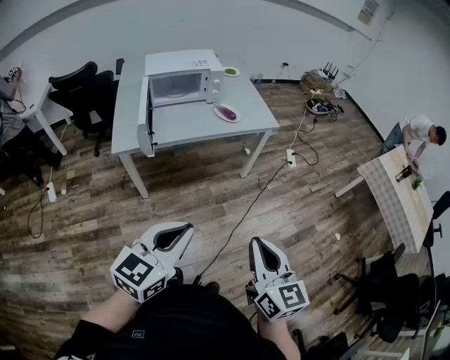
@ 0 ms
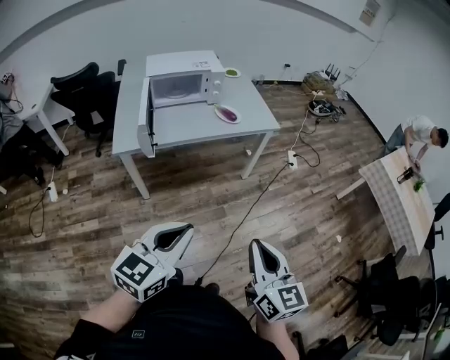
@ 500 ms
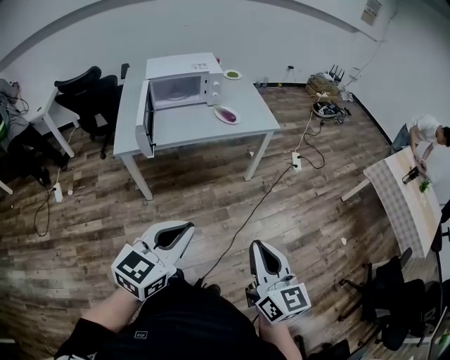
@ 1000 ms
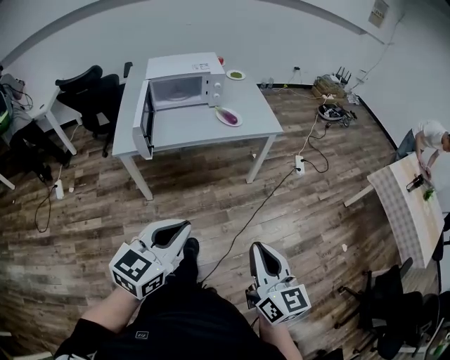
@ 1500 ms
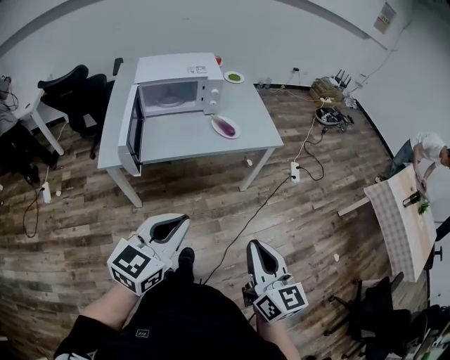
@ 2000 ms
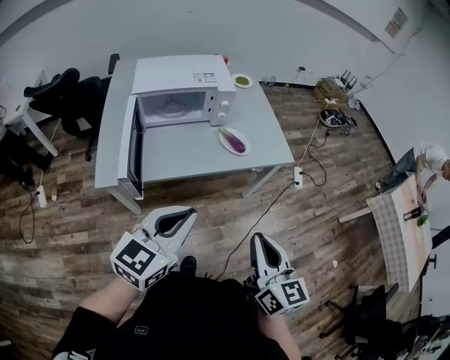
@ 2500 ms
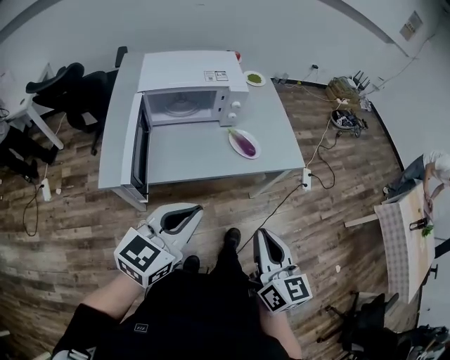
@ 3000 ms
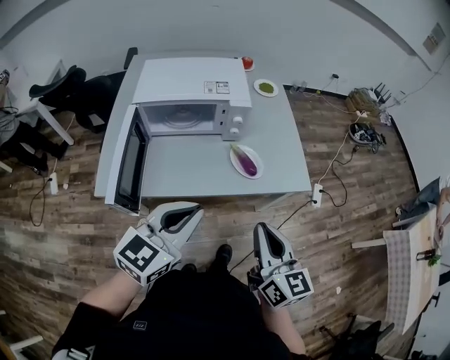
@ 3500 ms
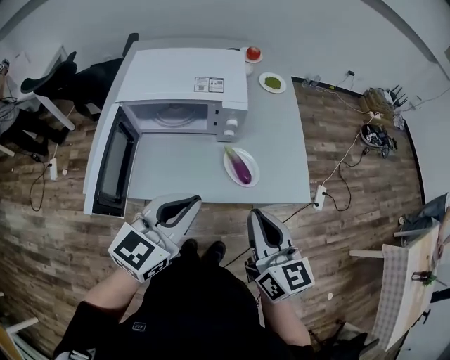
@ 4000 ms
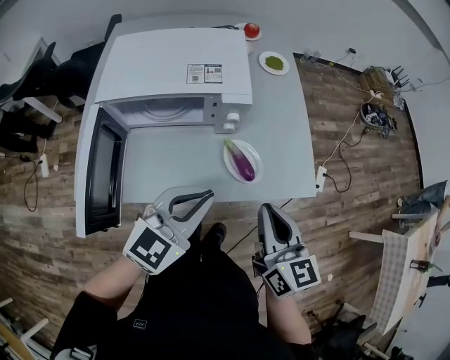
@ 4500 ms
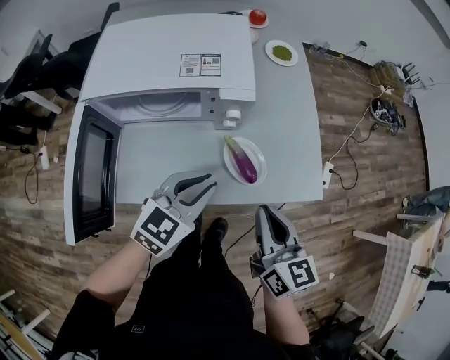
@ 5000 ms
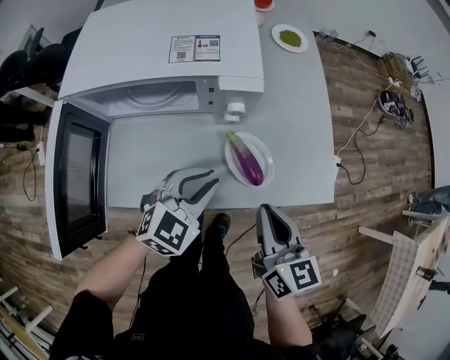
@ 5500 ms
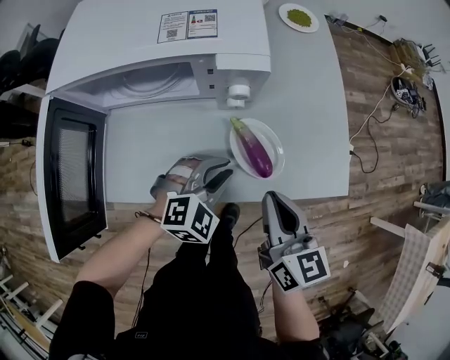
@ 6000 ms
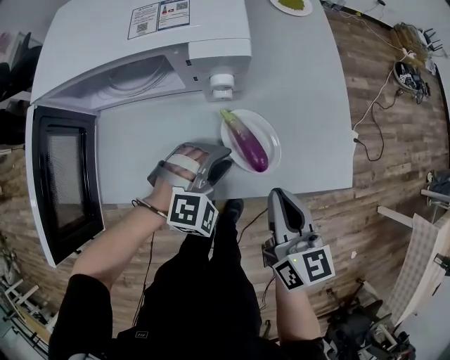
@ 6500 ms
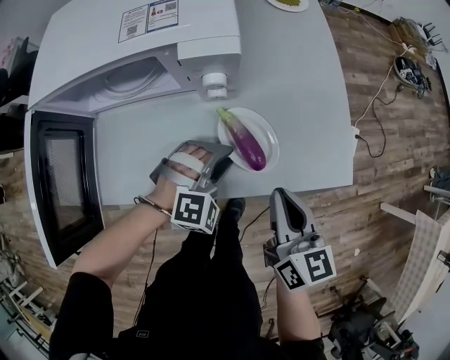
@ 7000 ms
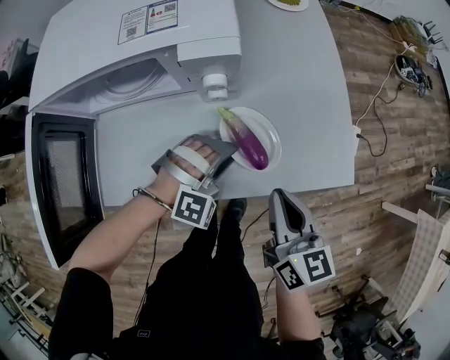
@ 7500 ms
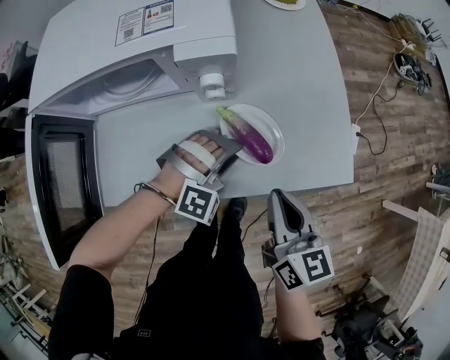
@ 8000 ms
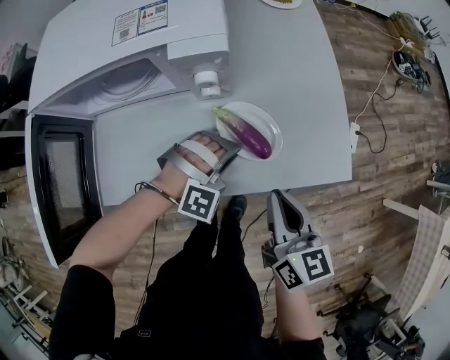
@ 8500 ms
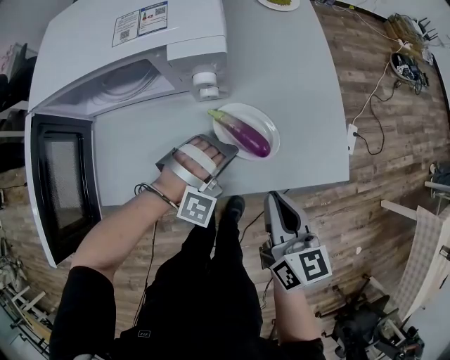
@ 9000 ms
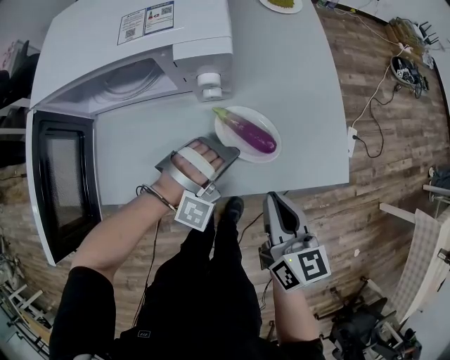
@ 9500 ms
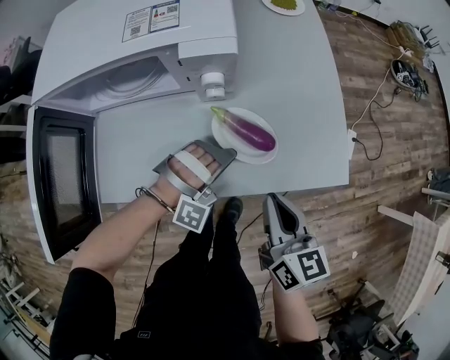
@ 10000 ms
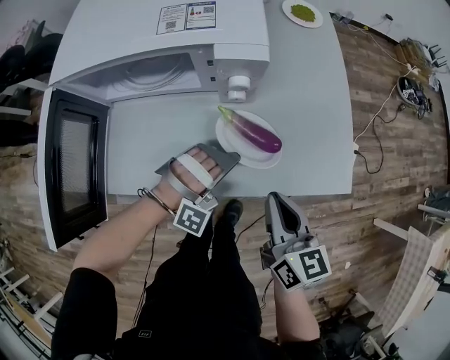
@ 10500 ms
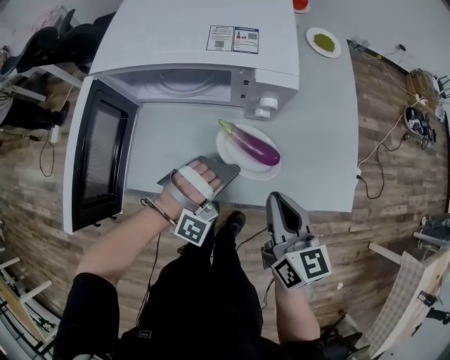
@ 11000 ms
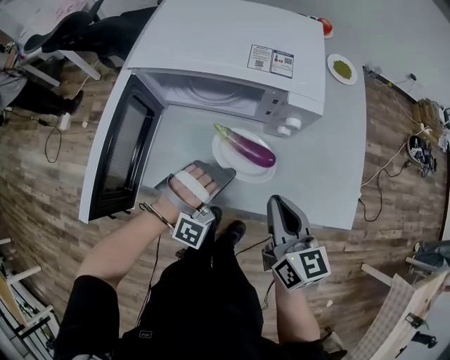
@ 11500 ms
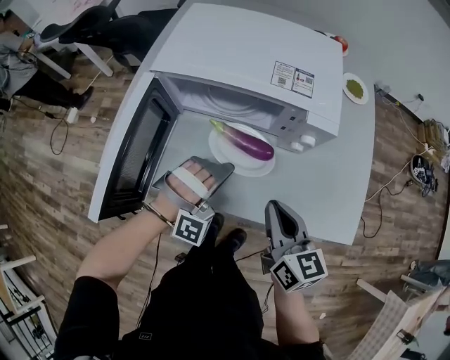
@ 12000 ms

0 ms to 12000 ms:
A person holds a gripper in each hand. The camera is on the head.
0 ms to 2000 ms: The grippers both shift forward by some 15 cm.
2000 ms to 4000 ms: The grippers both shift forward by about 40 cm.
4000 ms to 6000 ms: Both grippers travel together downward and forward, approximately 25 cm. The left gripper tips its fingers downward by about 30 degrees.
6000 ms to 8000 ms: The right gripper shifts by roughly 5 cm. Meanwhile the left gripper moves roughly 5 cm, and changes its angle by roughly 40 degrees.
8000 ms to 10000 ms: The left gripper turns by some 20 degrees, and closes.
10000 ms to 12000 ms: The two grippers go approximately 20 cm to the left and upward. The left gripper rotates some 20 degrees. The right gripper swivels approximately 20 degrees.

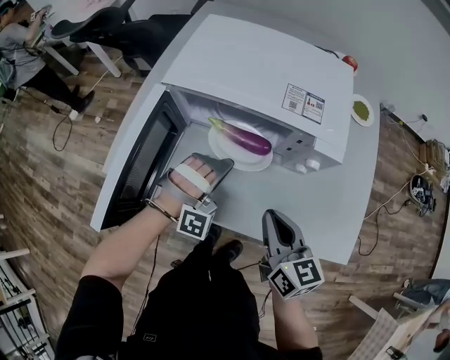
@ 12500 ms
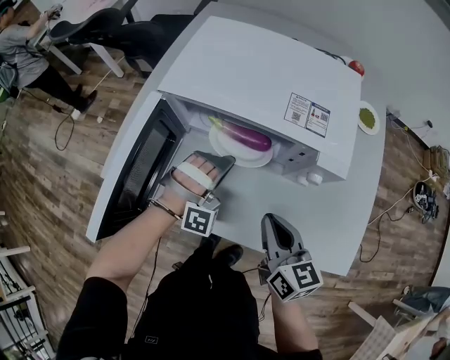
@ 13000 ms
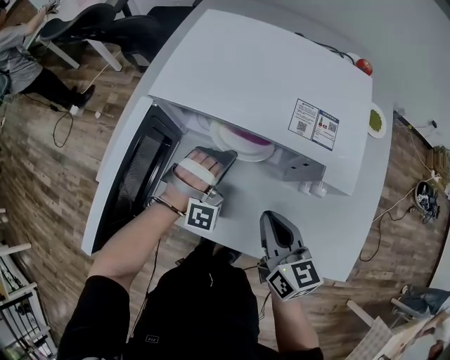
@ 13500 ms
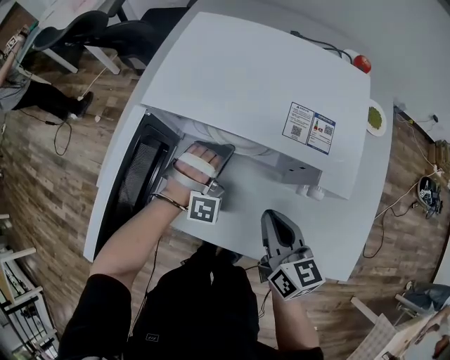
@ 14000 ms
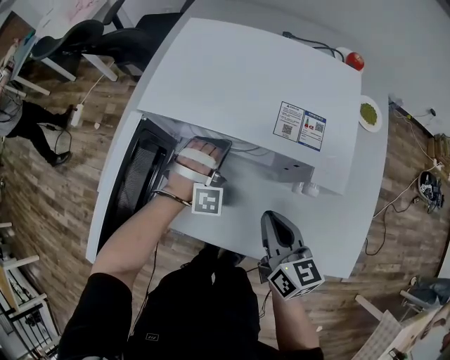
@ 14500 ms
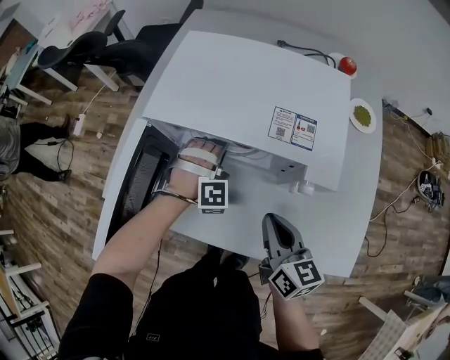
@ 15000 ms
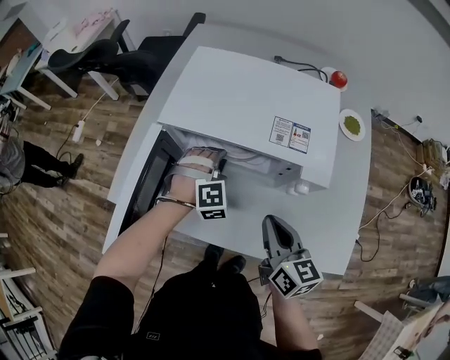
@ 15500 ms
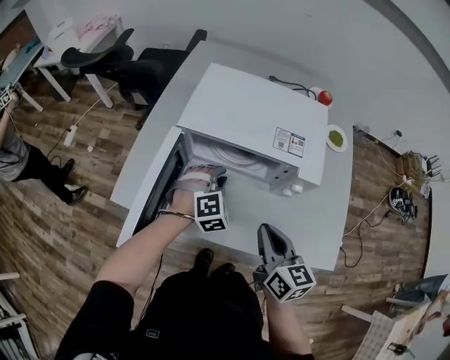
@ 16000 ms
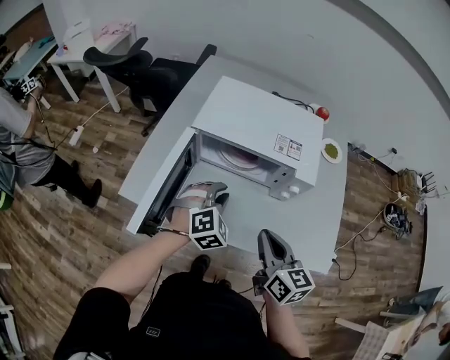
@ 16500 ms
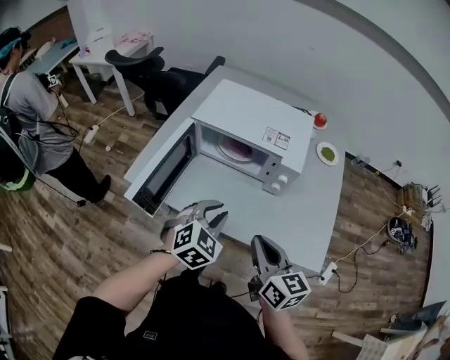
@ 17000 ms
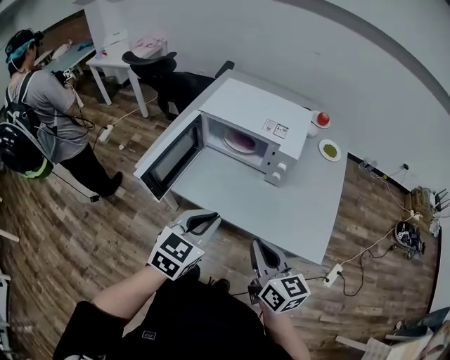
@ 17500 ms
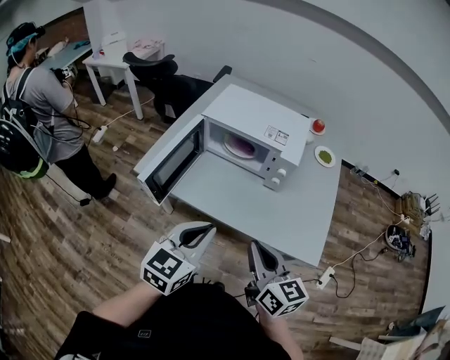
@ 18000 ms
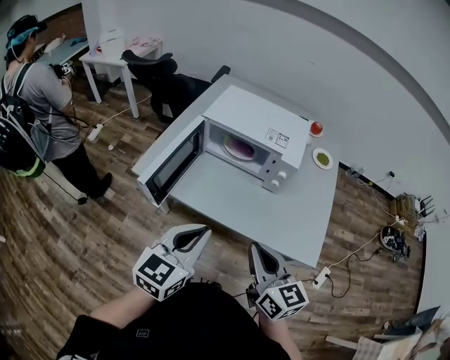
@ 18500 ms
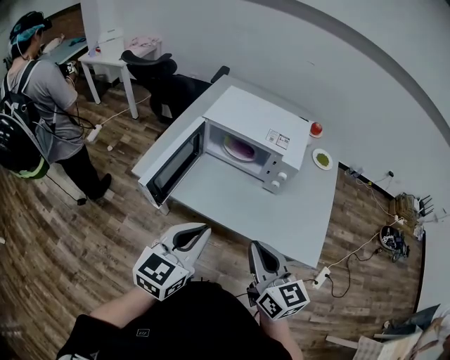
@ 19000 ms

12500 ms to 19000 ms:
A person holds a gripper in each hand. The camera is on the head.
12500 ms to 14500 ms: The right gripper travels forward by roughly 5 cm; the left gripper moves forward, roughly 15 cm.
14500 ms to 17000 ms: Both grippers travel together backward and upward, some 30 cm. The left gripper twists about 60 degrees counterclockwise, seen from behind.
17000 ms to 19000 ms: The right gripper goes approximately 10 cm backward and upward; the left gripper travels backward, upward and to the left by about 20 cm, and turns by some 40 degrees.

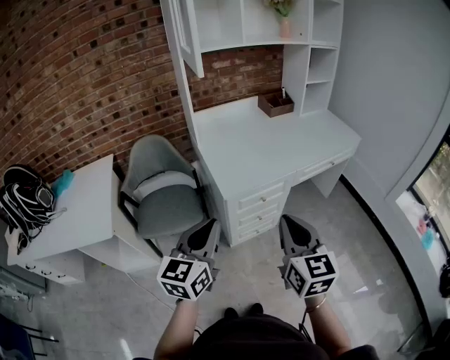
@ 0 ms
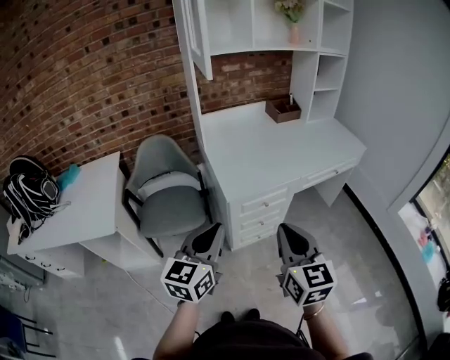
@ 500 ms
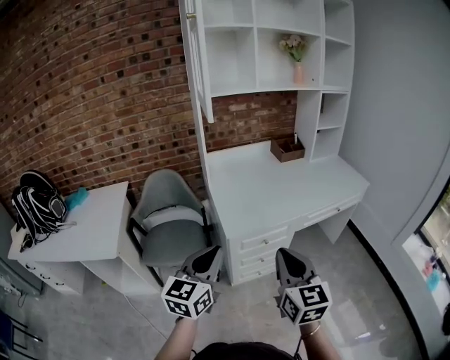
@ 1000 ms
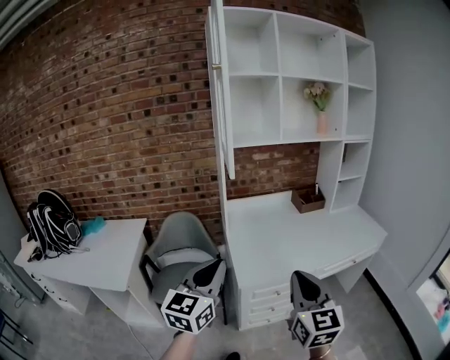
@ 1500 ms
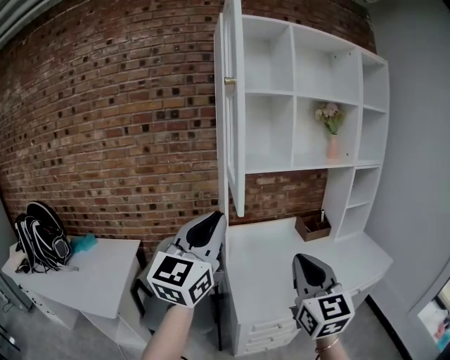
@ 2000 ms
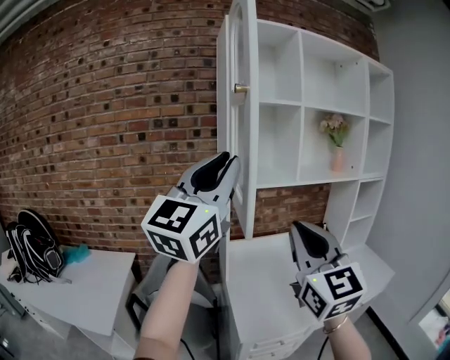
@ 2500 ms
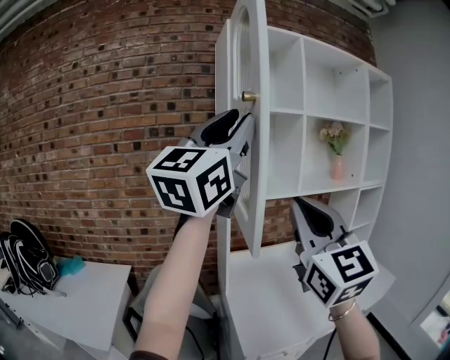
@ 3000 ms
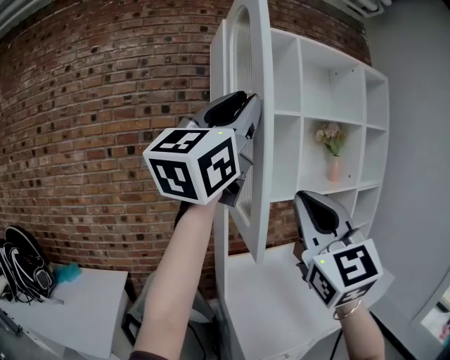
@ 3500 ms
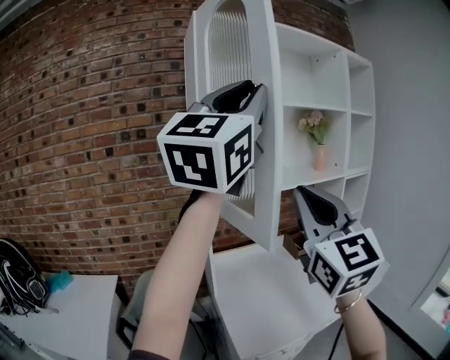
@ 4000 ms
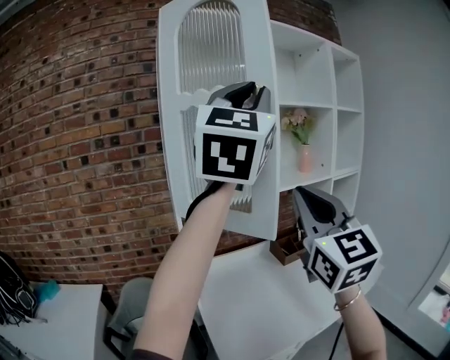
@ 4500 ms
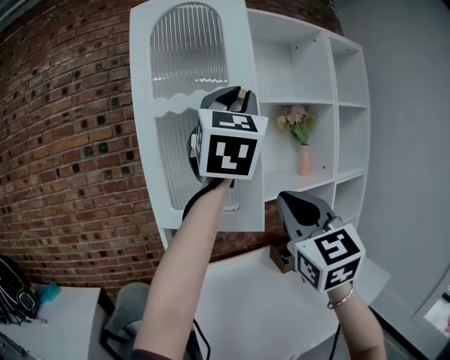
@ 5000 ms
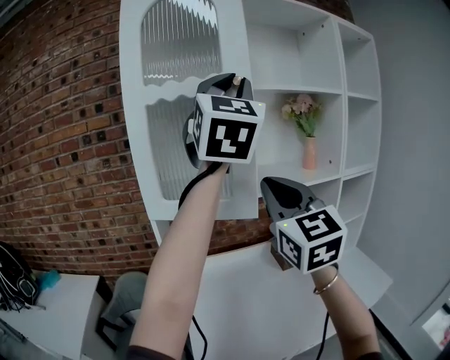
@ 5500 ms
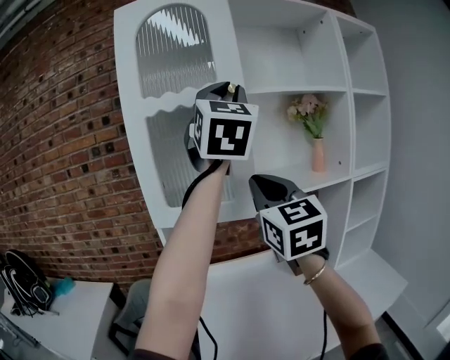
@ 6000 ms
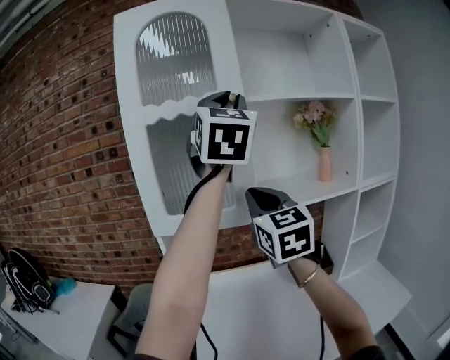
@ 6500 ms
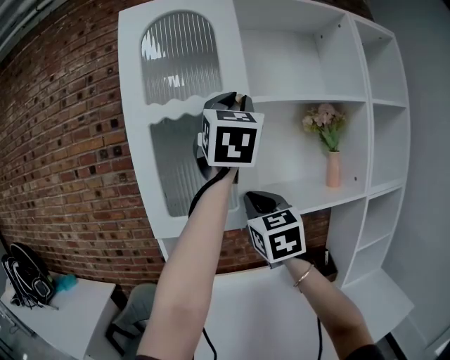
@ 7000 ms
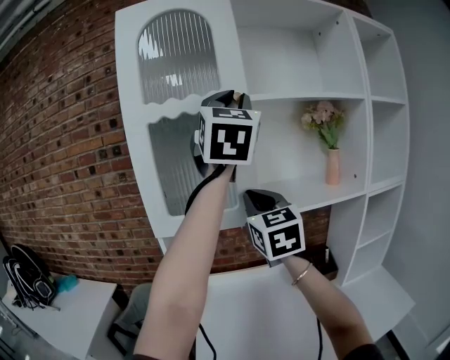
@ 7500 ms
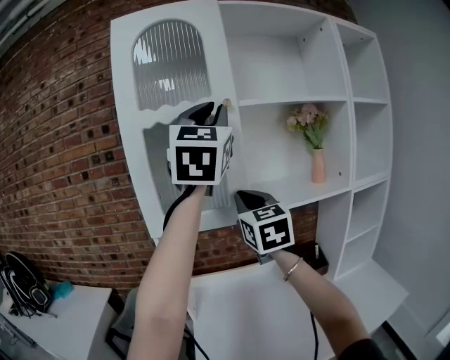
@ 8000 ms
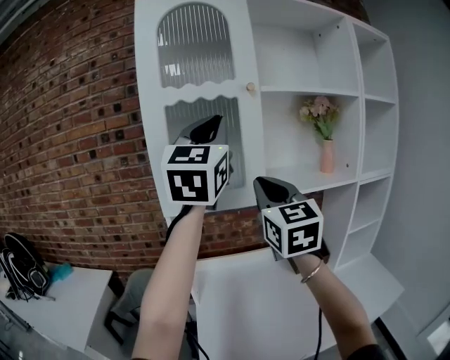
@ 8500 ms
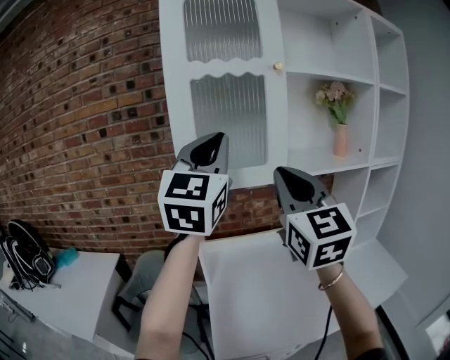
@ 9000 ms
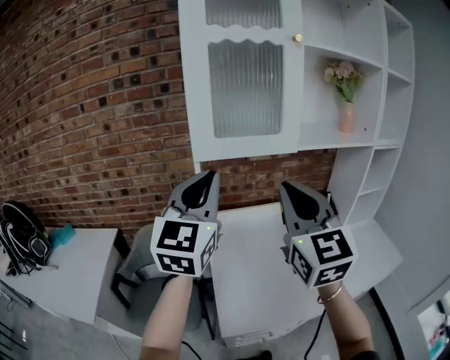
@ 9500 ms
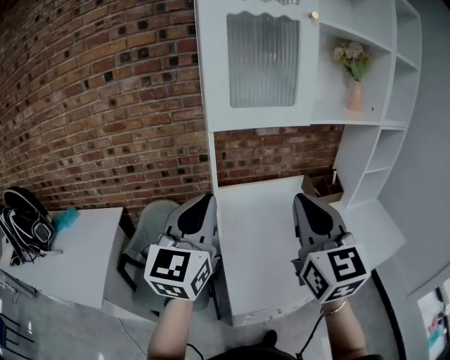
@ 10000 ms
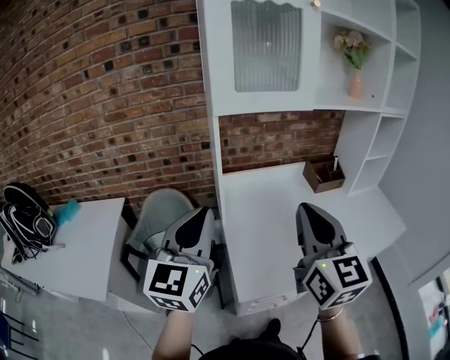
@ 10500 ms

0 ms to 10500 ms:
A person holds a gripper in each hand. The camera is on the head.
0 ms to 2000 ms: The left gripper travels upward and forward by about 35 cm, and swivels about 30 degrees, while the right gripper moves forward and upward, about 30 cm, and rotates roughly 20 degrees.
2000 ms to 4000 ms: Both grippers travel together upward and forward, approximately 25 cm. The left gripper swivels roughly 20 degrees.
4000 ms to 6500 ms: The left gripper heads forward and to the right, covering about 30 cm, and changes its angle by some 40 degrees. Meanwhile the right gripper shifts about 30 cm forward.
6500 ms to 8500 ms: The left gripper travels to the left, downward and backward by approximately 10 cm.
8500 ms to 10500 ms: The left gripper moves downward, to the left and backward, roughly 40 cm, and rotates roughly 30 degrees. The right gripper is displaced backward, downward and to the left by approximately 30 cm.
